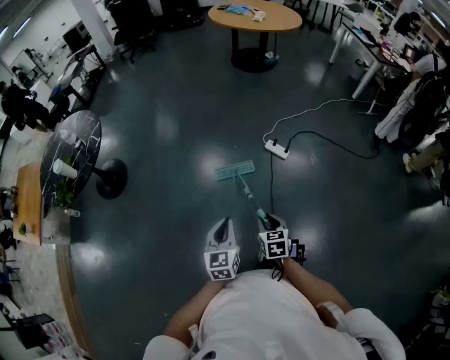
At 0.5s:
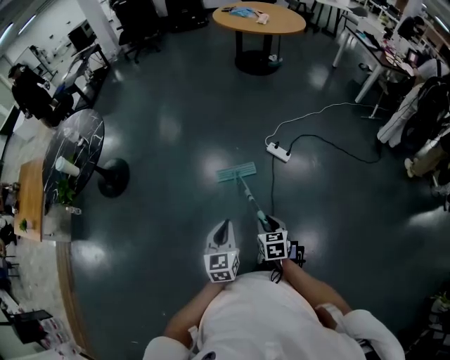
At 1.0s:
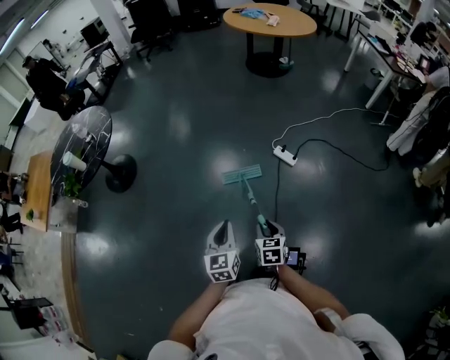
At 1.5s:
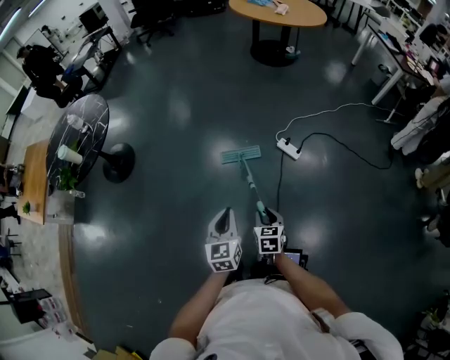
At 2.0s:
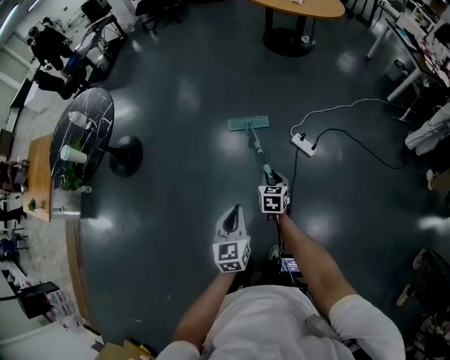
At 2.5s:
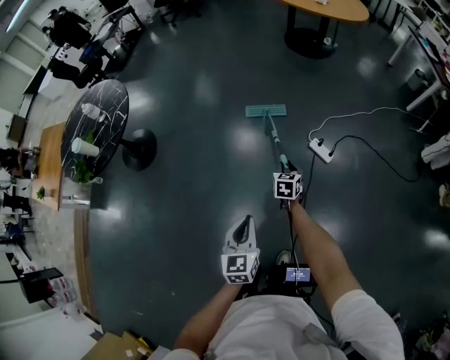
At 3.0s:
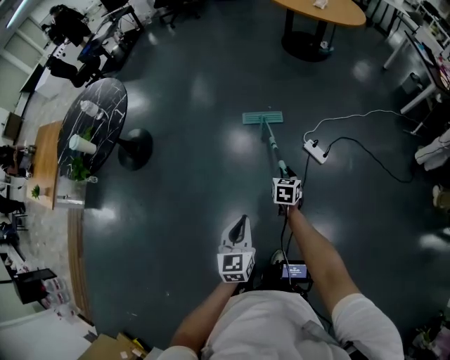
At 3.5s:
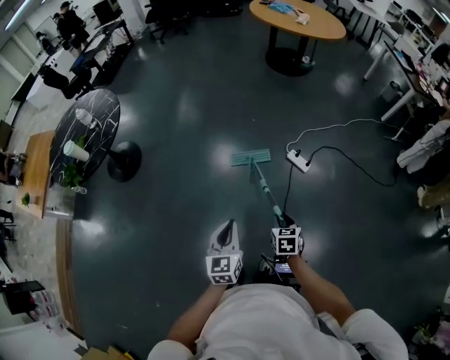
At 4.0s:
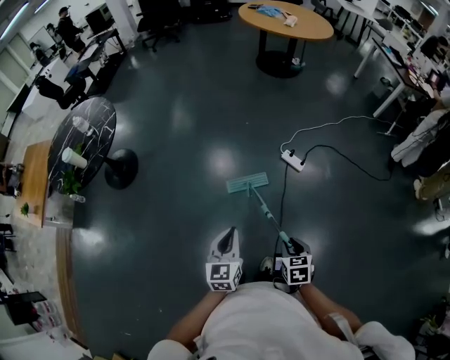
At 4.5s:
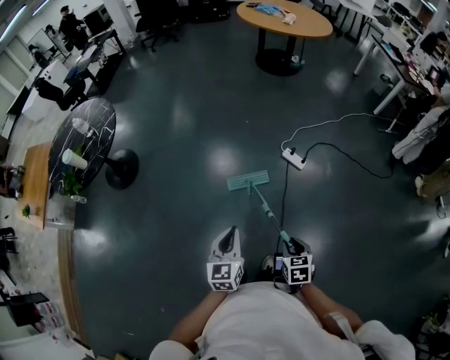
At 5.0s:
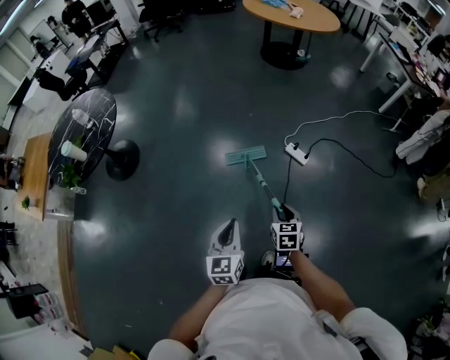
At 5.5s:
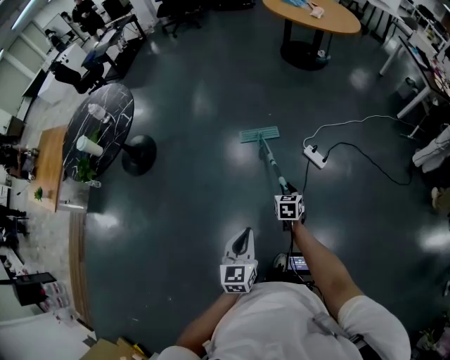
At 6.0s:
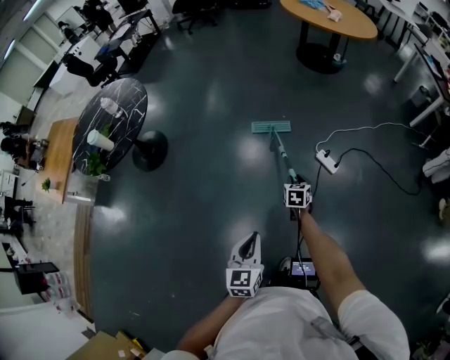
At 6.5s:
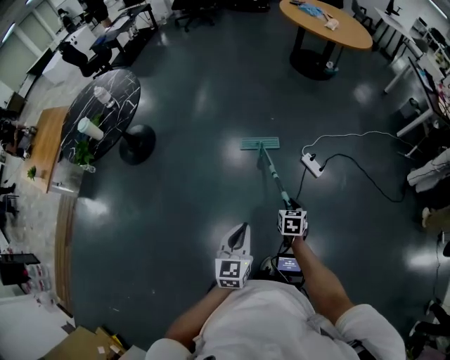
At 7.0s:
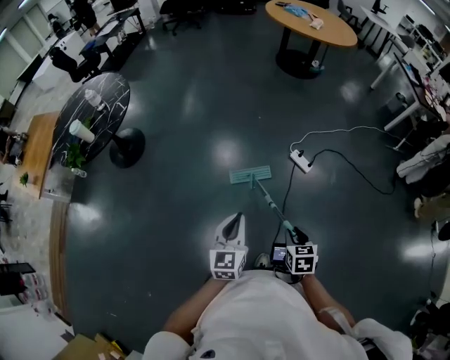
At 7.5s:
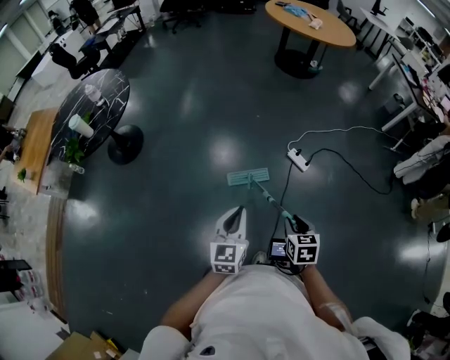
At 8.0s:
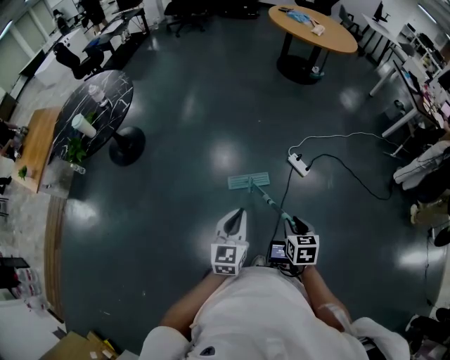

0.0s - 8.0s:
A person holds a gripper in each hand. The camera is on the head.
0.0s - 2.0s: The right gripper shifts roughly 25 cm forward, while the left gripper heads forward, covering about 10 cm.
2.0s - 4.0s: The left gripper is displaced backward by some 10 cm. Meanwhile the right gripper heads backward, covering approximately 25 cm.
4.0s - 6.0s: The right gripper is displaced forward by some 30 cm.
6.0s - 8.0s: The right gripper travels backward and upward by roughly 25 cm.

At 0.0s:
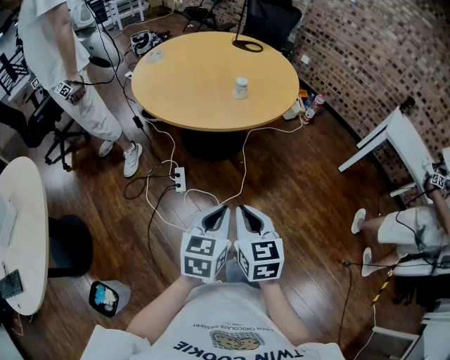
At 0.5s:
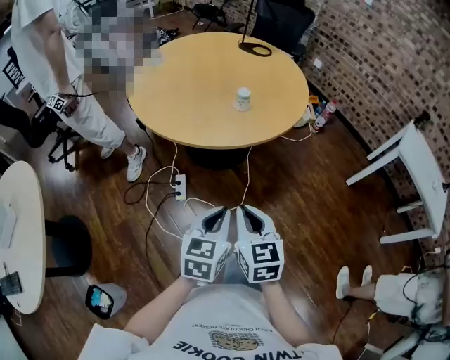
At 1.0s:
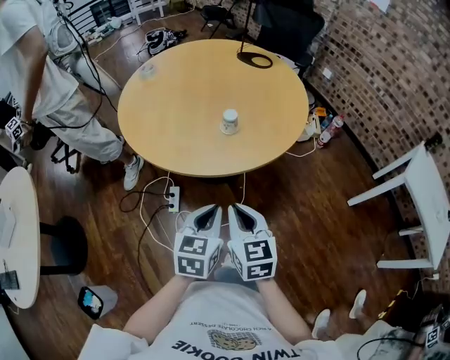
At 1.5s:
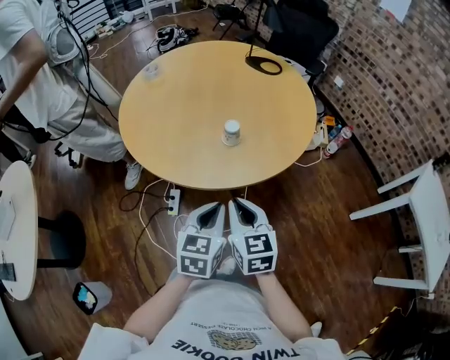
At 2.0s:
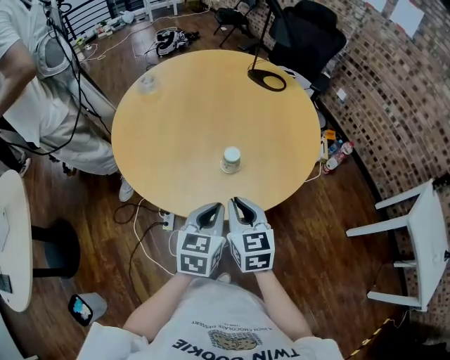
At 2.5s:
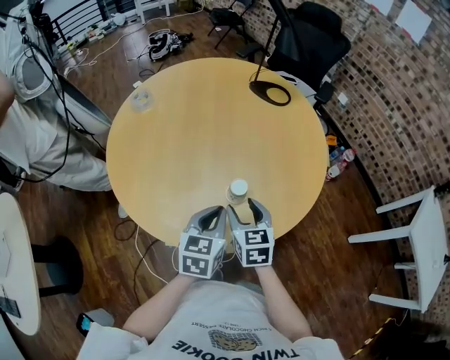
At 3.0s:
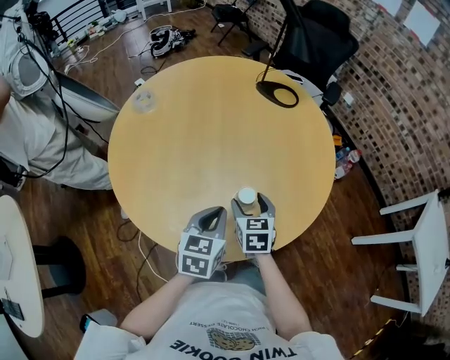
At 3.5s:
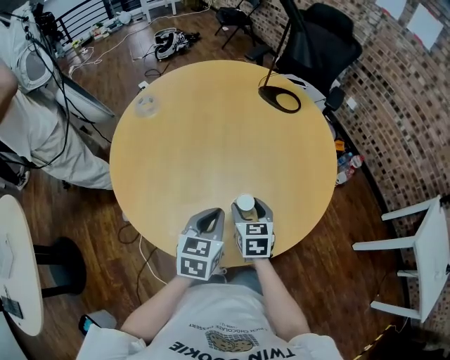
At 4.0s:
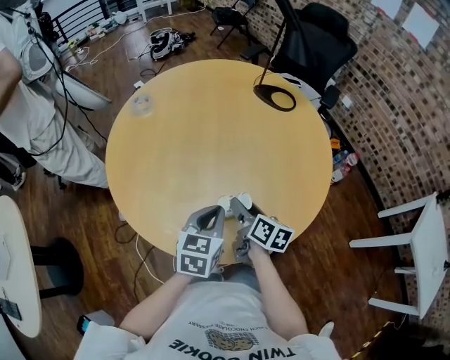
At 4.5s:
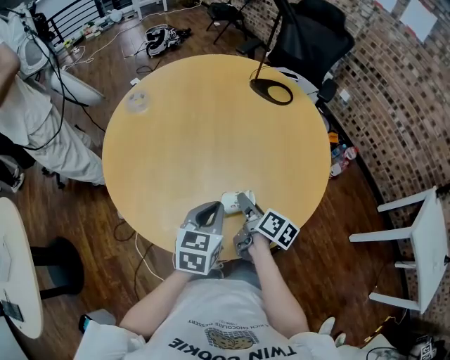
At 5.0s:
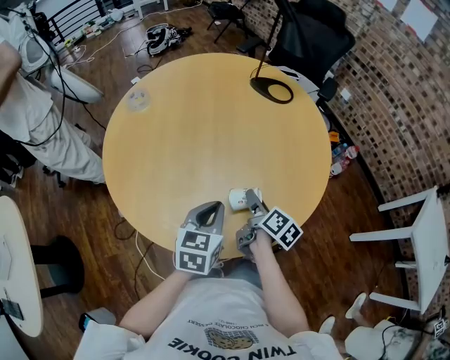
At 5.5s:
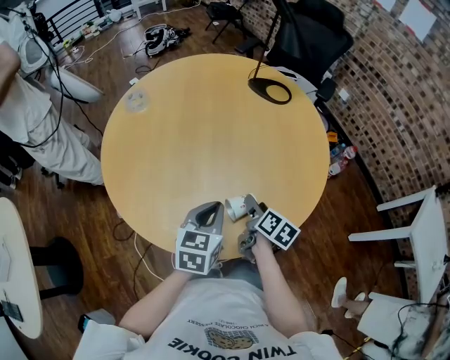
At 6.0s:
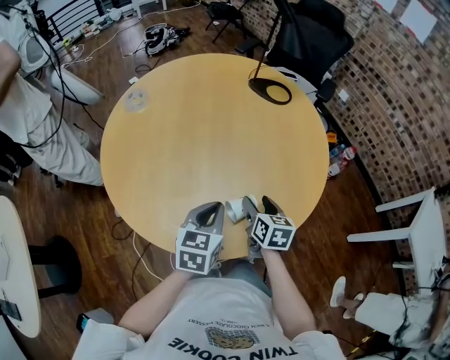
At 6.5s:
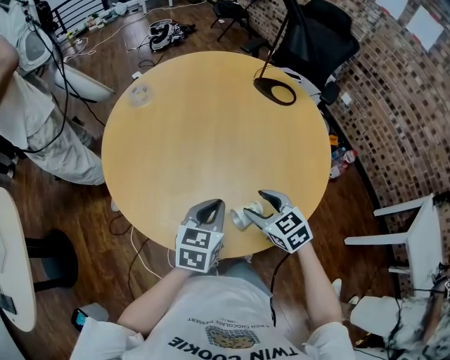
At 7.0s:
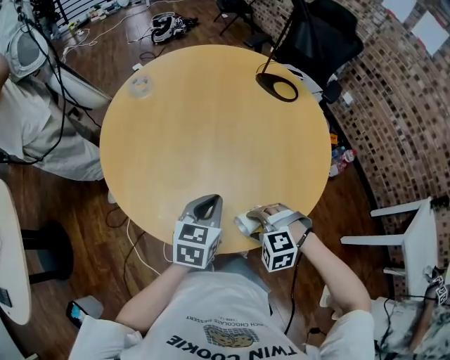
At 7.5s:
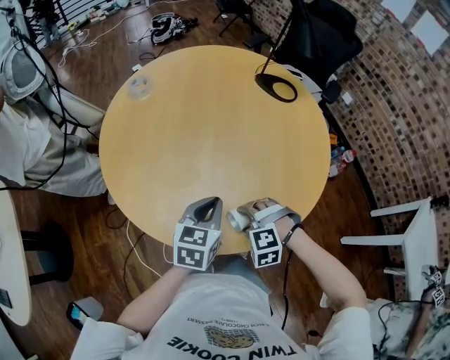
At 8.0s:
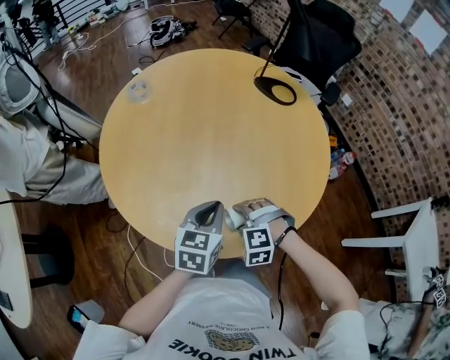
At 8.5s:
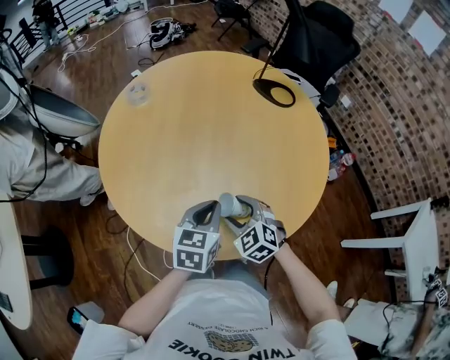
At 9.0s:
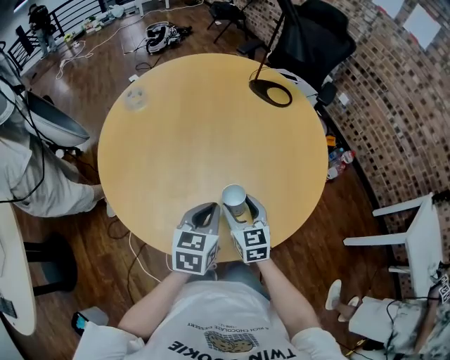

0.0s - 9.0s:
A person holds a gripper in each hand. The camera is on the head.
0.0s - 2.0s: The two grippers travel together, forward, approximately 40 cm.
2.0s - 4.5s: The left gripper travels forward by about 15 cm, while the right gripper travels forward and downward by some 20 cm, rolls clockwise, seen from behind, by some 60 degrees, and opens its fingers.
4.5s - 7.0s: The right gripper goes some 10 cm backward, and rotates around the line of its fingers by about 130 degrees, counterclockwise from behind.
7.0s - 9.0s: The right gripper moves forward, about 10 cm, and rotates around the line of its fingers by some 70 degrees, clockwise from behind.

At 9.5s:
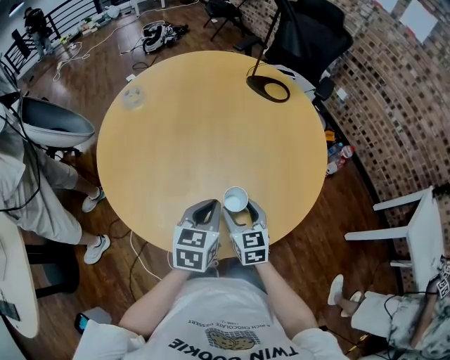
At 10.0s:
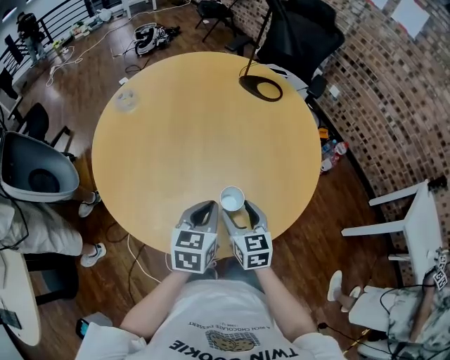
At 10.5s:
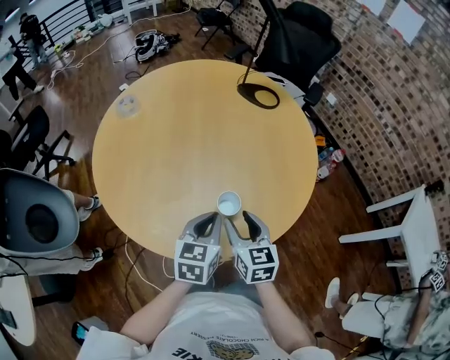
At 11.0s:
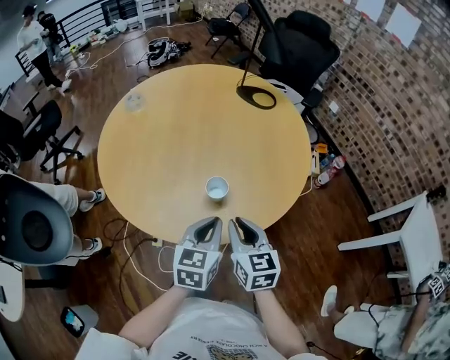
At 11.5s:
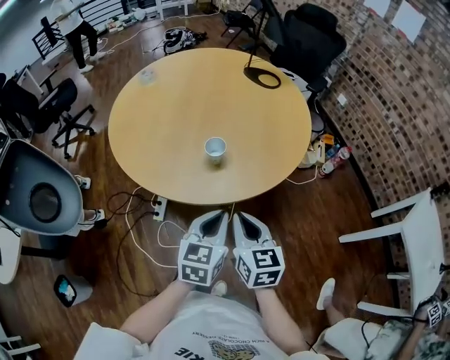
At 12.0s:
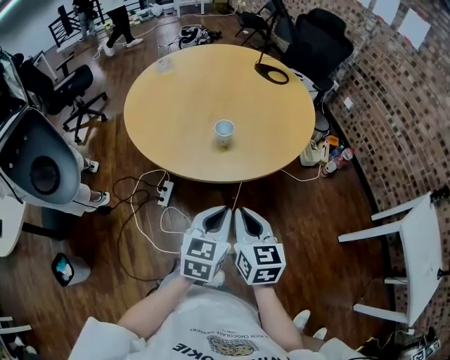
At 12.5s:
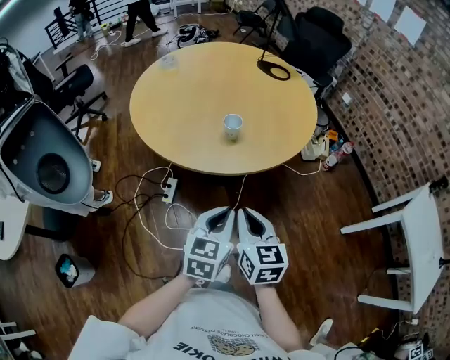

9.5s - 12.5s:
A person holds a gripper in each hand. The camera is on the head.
9.5s - 11.0s: The left gripper is displaced backward and to the right by about 10 cm, while the right gripper travels backward, upward and to the right by some 15 cm, and closes up.
11.0s - 12.5s: The grippers both shift backward by roughly 25 cm.

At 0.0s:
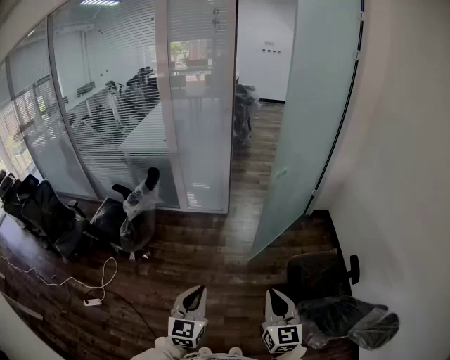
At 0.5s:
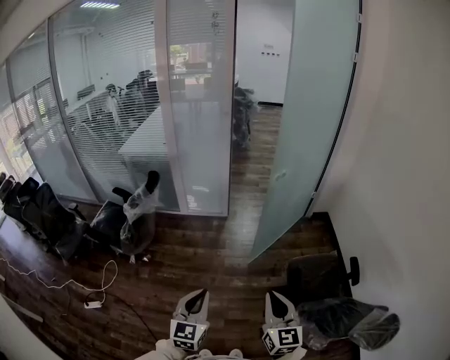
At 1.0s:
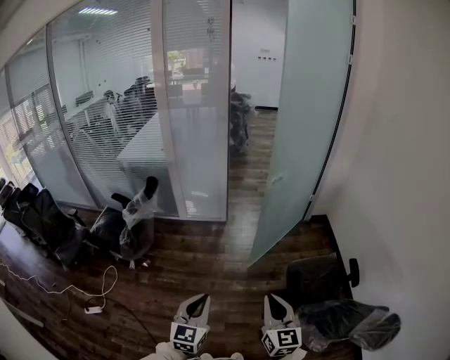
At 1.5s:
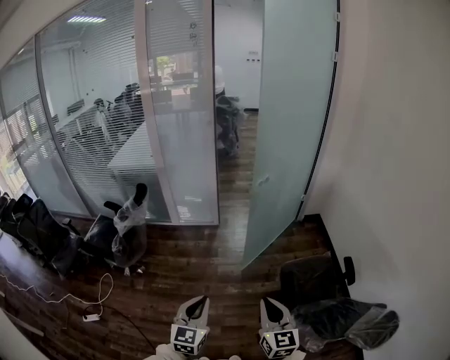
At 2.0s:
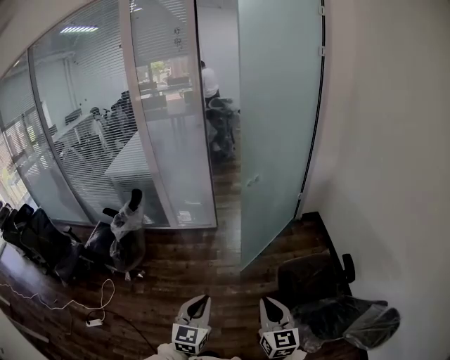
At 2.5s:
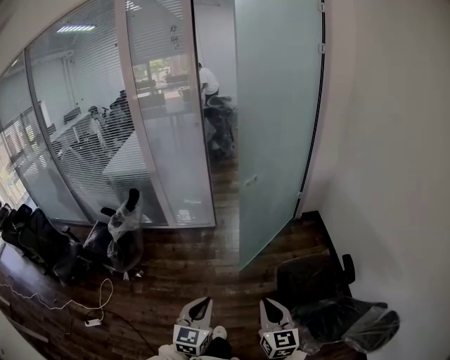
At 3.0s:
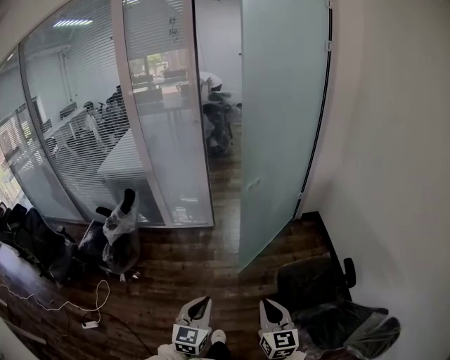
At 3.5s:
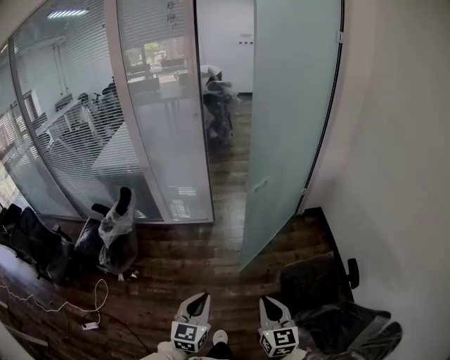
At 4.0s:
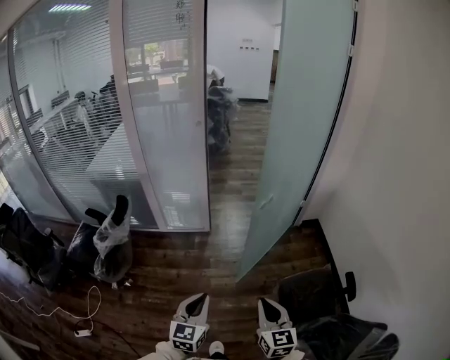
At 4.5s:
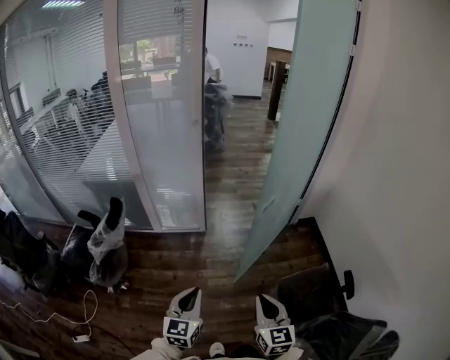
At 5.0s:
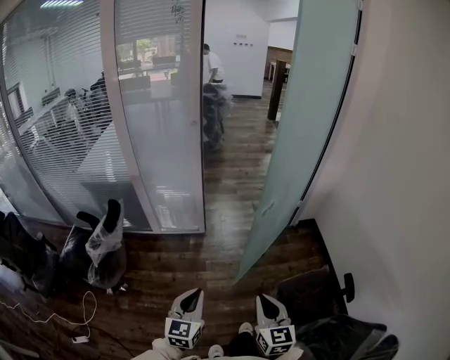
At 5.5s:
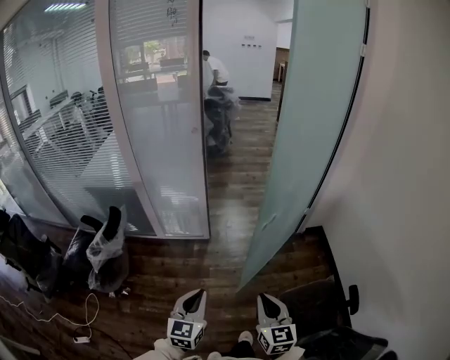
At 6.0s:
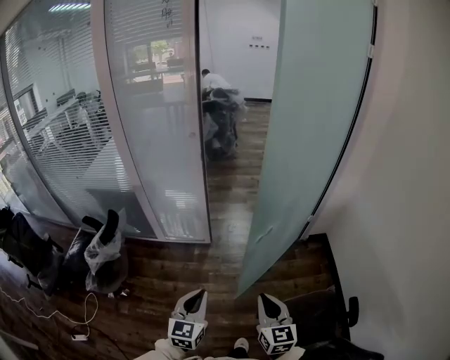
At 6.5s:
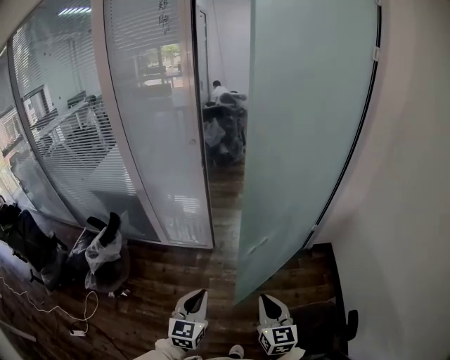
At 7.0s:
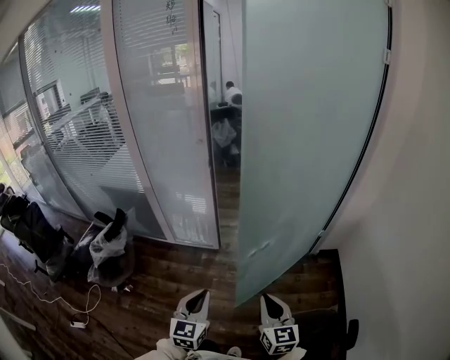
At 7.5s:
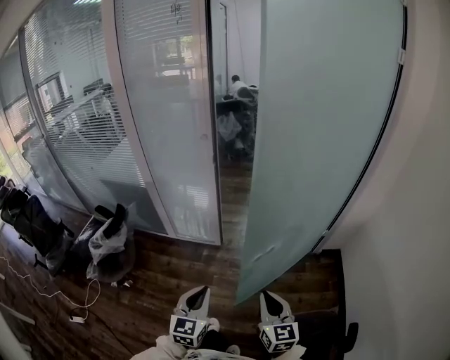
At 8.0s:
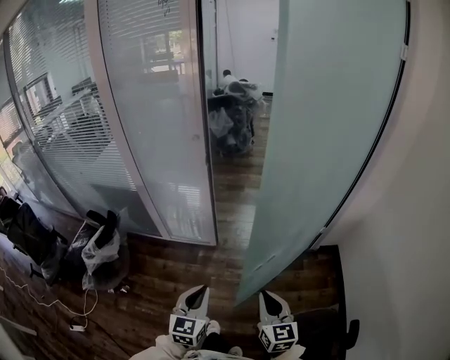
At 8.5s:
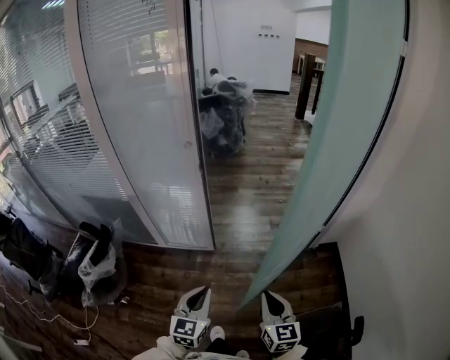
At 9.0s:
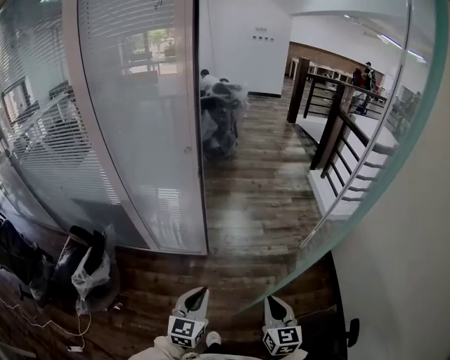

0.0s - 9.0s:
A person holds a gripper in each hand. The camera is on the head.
0.0s - 2.0s: The two grippers go some 10 cm to the right.
2.0s - 4.5s: The right gripper heads forward, covering roughly 20 cm. Meanwhile the left gripper is displaced forward and to the left by roughly 25 cm.
4.5s - 7.0s: Both grippers travel together forward and to the right, approximately 20 cm.
7.0s - 9.0s: Both grippers travel together forward, some 15 cm.
